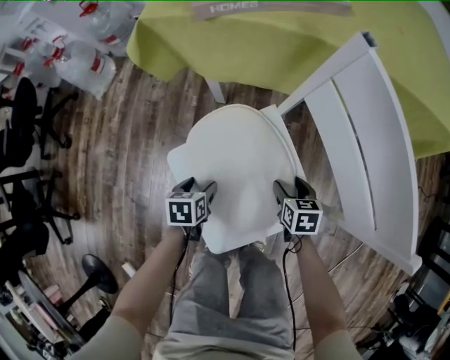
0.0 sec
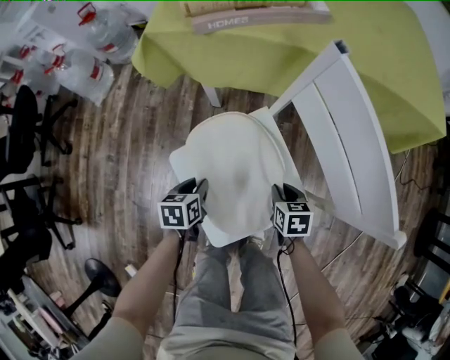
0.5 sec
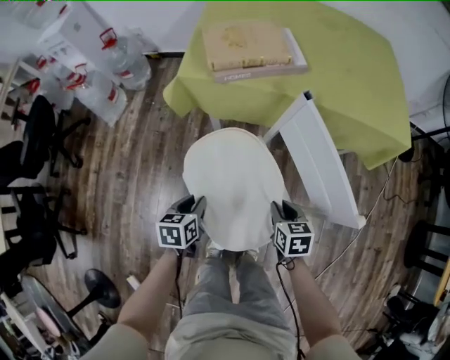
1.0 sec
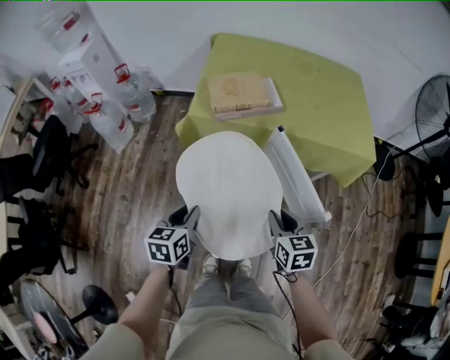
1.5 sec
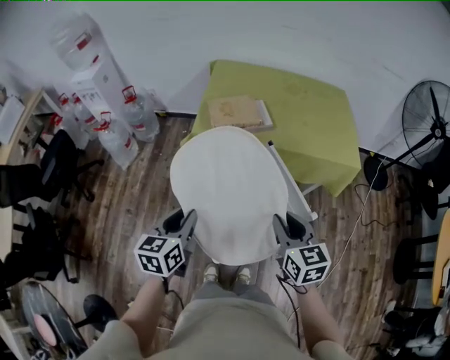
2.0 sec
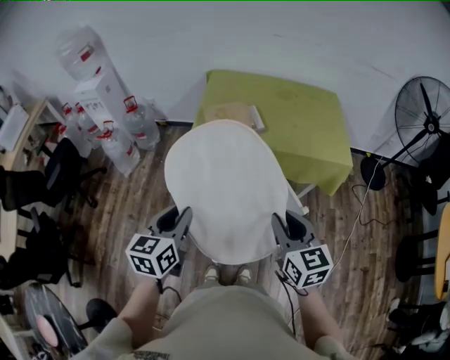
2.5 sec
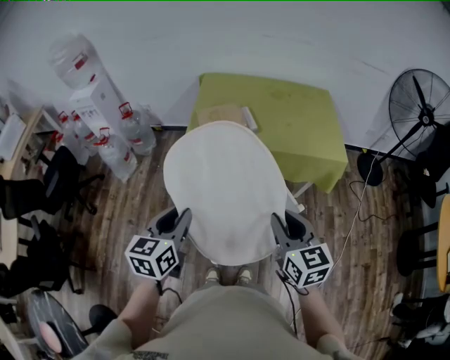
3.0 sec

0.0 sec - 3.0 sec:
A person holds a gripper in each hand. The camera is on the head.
0.0 sec - 1.5 sec: The grippers both shift upward by about 40 cm. The right gripper swivels some 20 degrees, and closes its fingers, while the left gripper turns by about 30 degrees, and closes.
1.5 sec - 3.0 sec: The grippers both shift upward by approximately 25 cm.

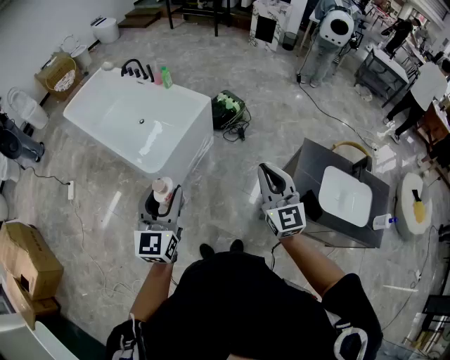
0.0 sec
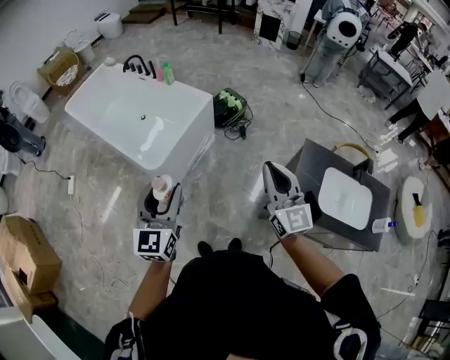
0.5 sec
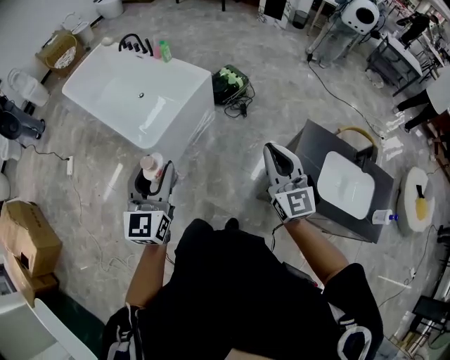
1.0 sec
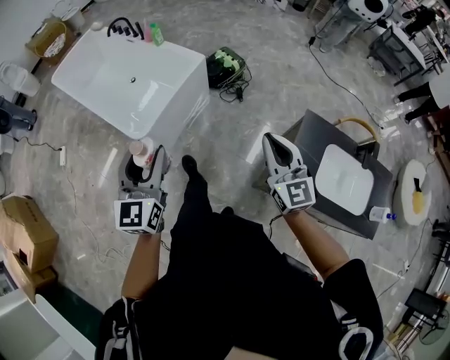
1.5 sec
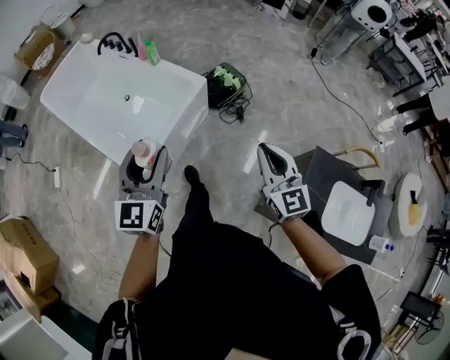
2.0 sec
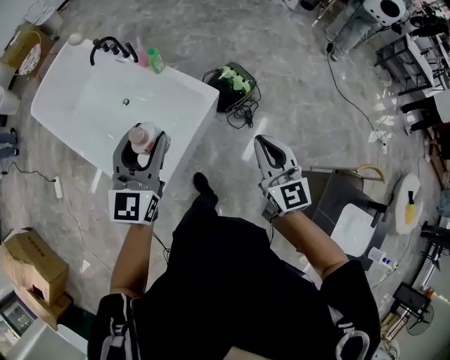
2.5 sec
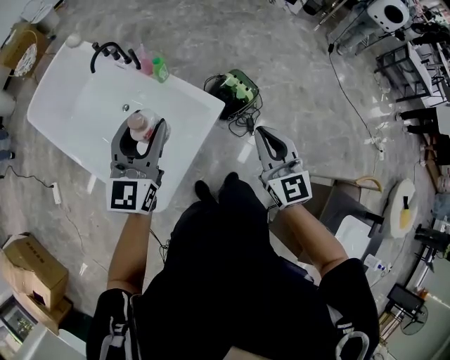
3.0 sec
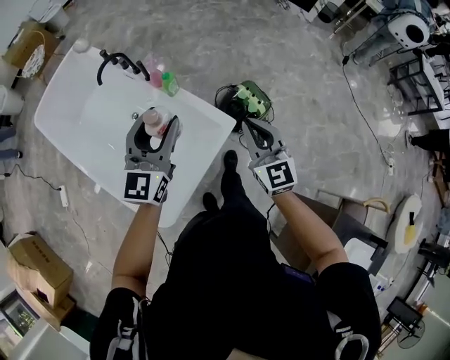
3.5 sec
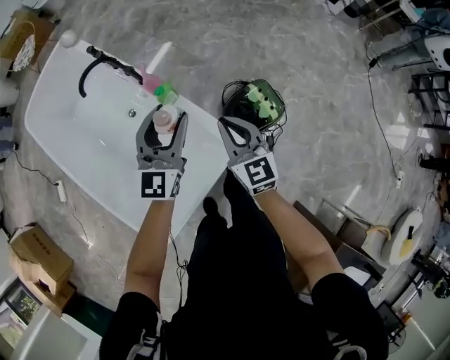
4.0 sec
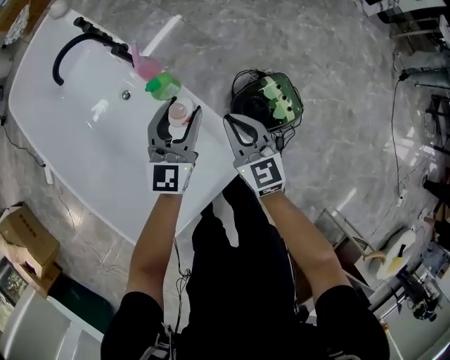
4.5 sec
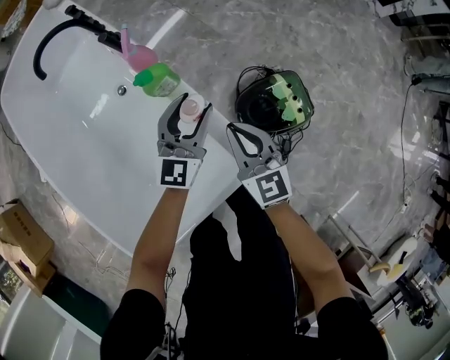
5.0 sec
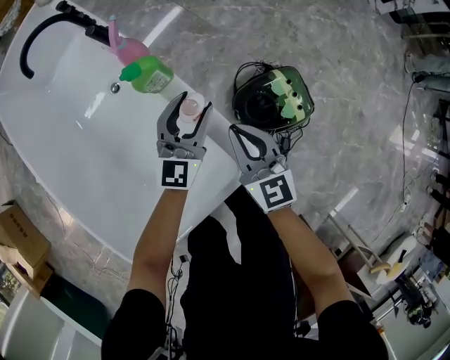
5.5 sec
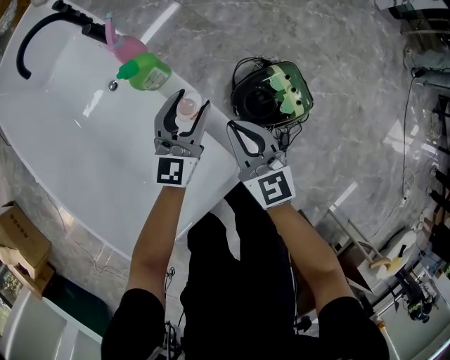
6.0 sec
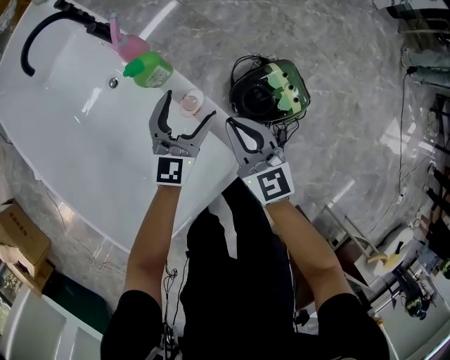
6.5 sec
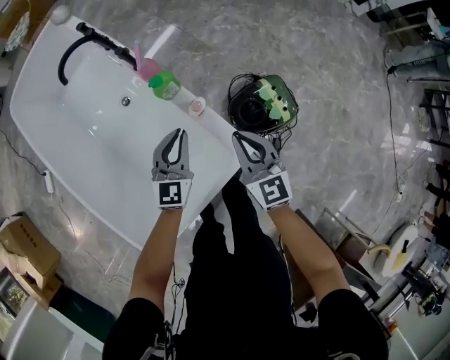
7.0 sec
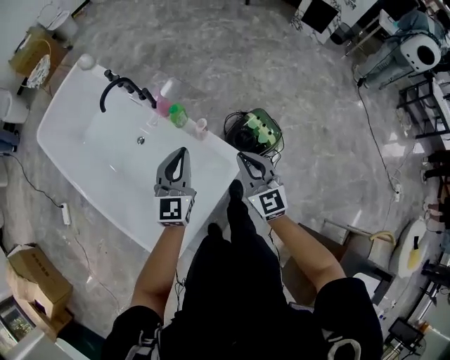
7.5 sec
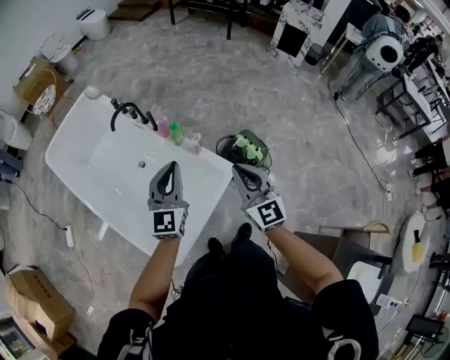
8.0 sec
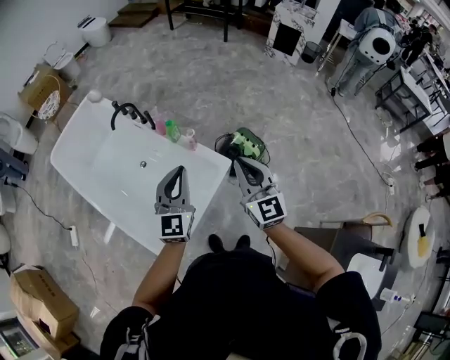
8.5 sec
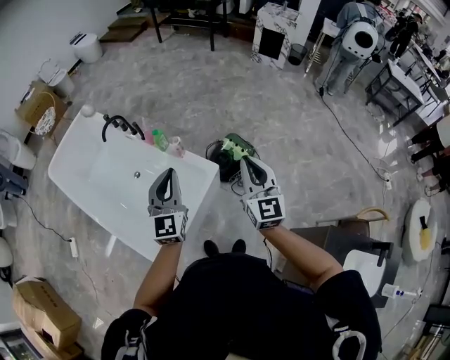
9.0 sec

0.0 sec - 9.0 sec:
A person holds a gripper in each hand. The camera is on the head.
0.0 sec - 2.0 sec: The two grippers go roughly 30 cm forward.
2.0 sec - 4.5 sec: Both grippers are carried forward, some 80 cm. Both grippers move downward, about 35 cm. The right gripper swivels roughly 30 degrees.
4.5 sec - 7.0 sec: Both grippers travel together backward, some 10 cm. The right gripper moves some 10 cm downward and comes back, while the left gripper travels downward and back again, about 15 cm each way, and closes up.
7.0 sec - 9.0 sec: Both grippers travel together upward and backward, some 50 cm. The right gripper changes its angle by approximately 40 degrees, while the left gripper swivels roughly 20 degrees.

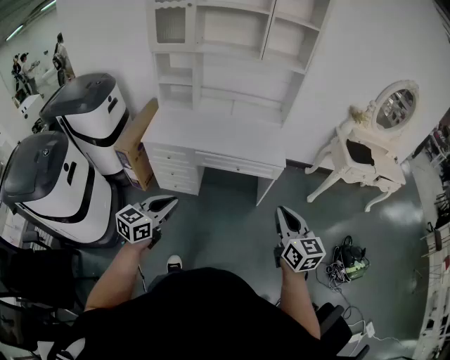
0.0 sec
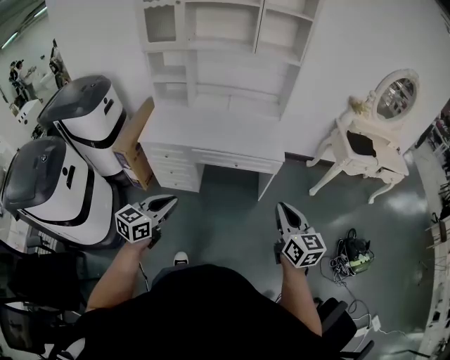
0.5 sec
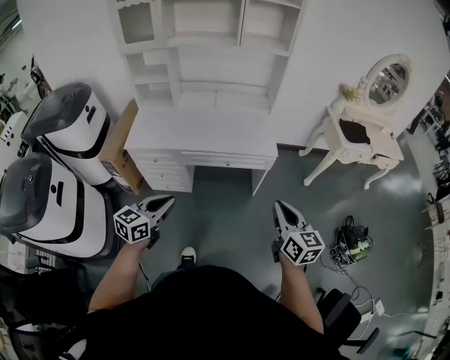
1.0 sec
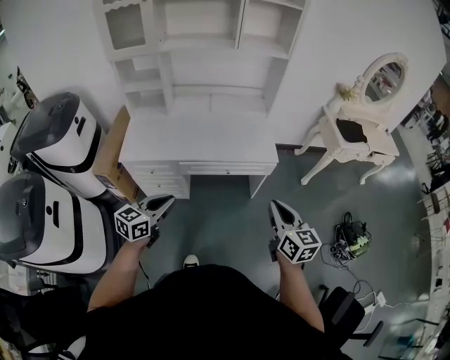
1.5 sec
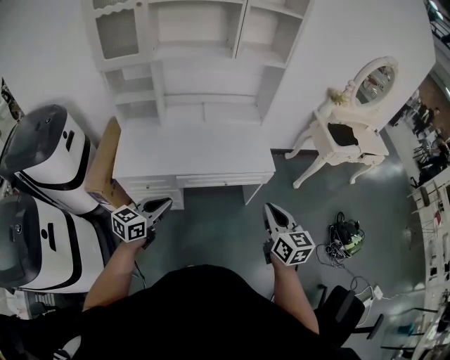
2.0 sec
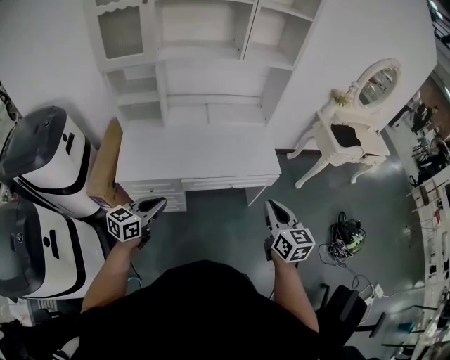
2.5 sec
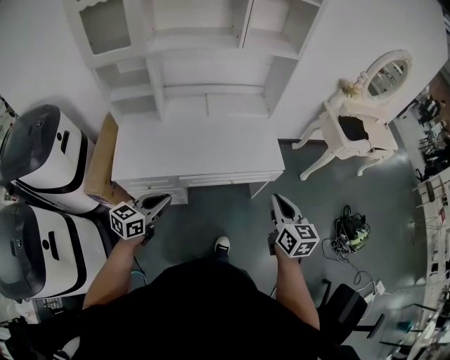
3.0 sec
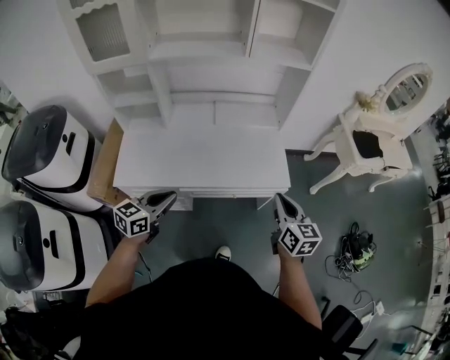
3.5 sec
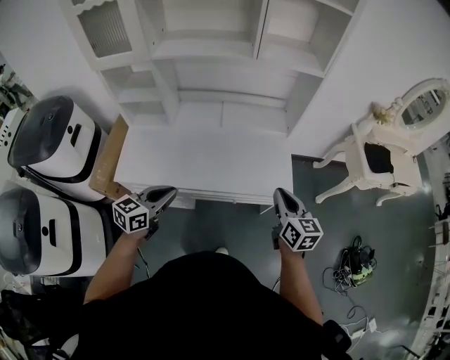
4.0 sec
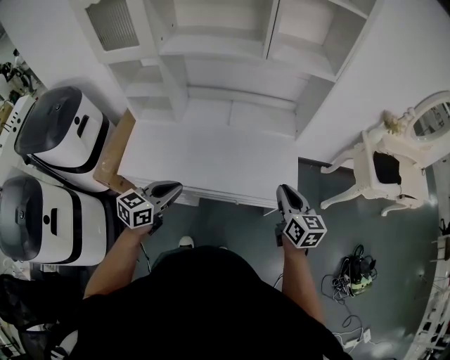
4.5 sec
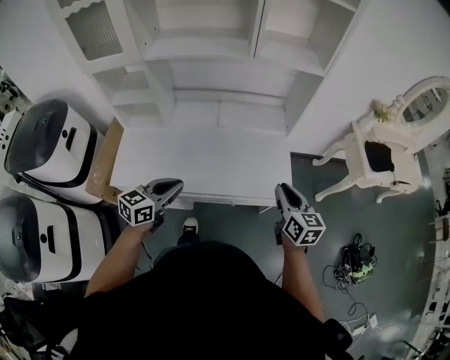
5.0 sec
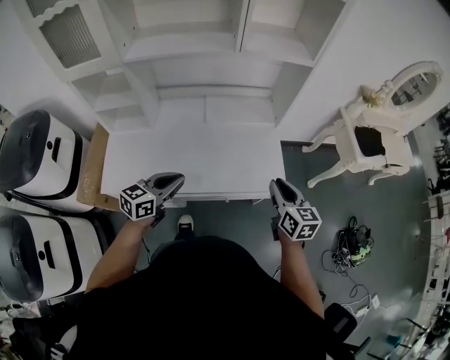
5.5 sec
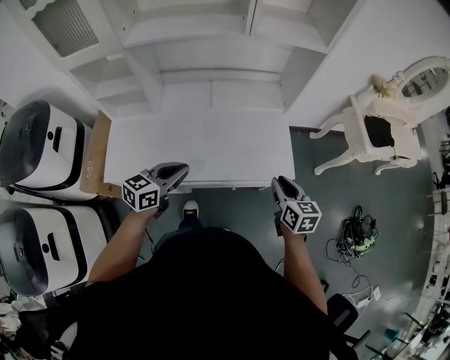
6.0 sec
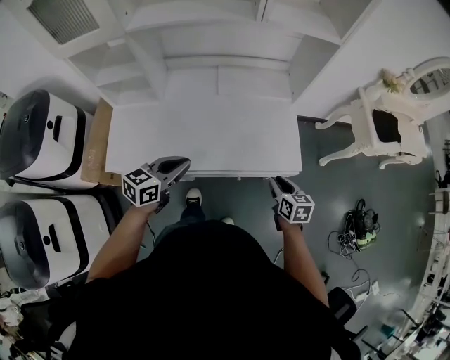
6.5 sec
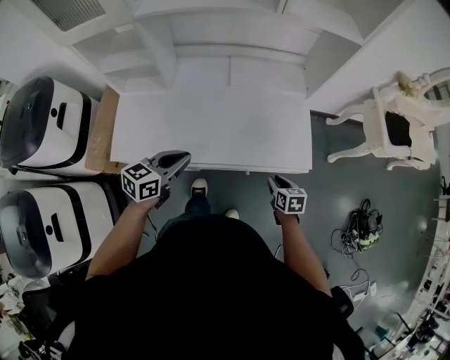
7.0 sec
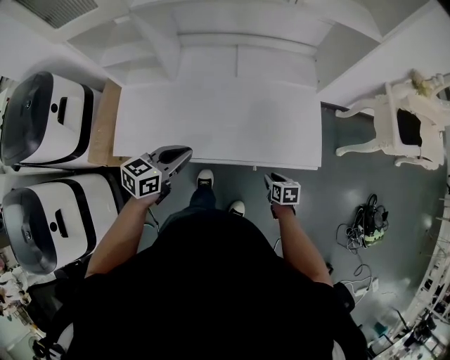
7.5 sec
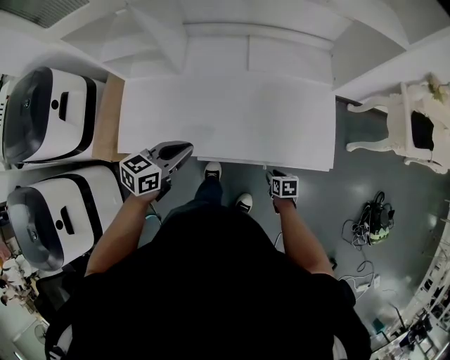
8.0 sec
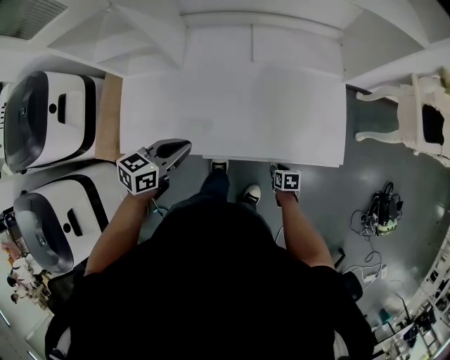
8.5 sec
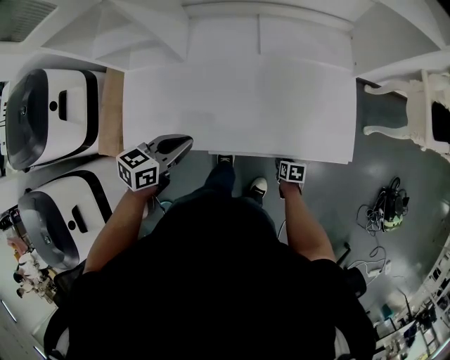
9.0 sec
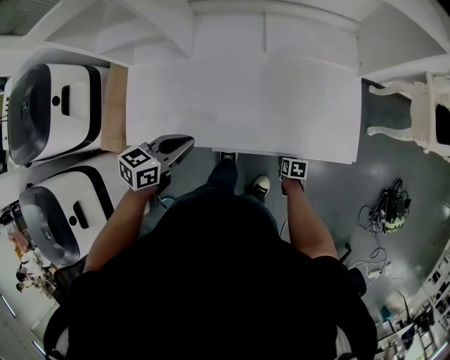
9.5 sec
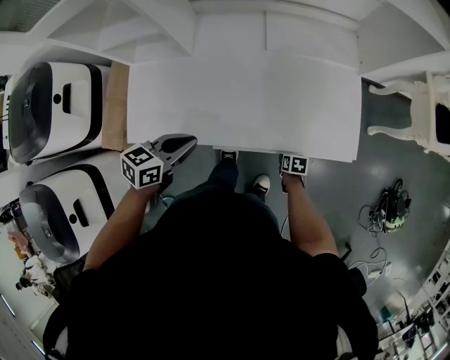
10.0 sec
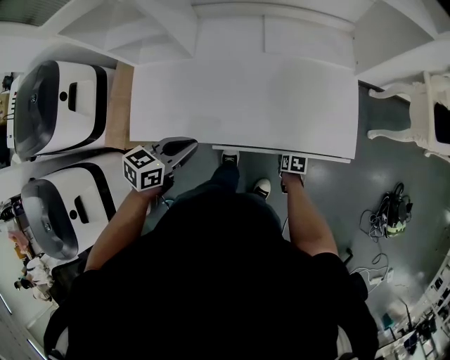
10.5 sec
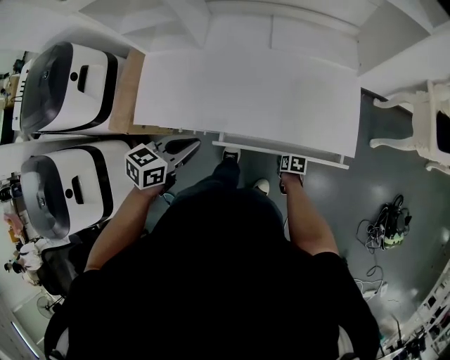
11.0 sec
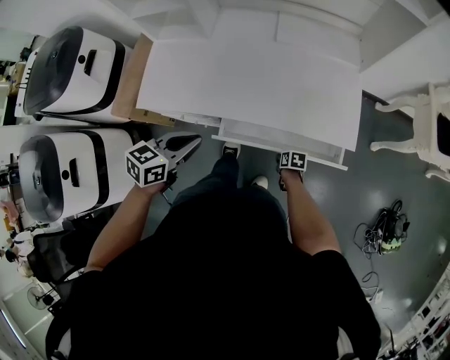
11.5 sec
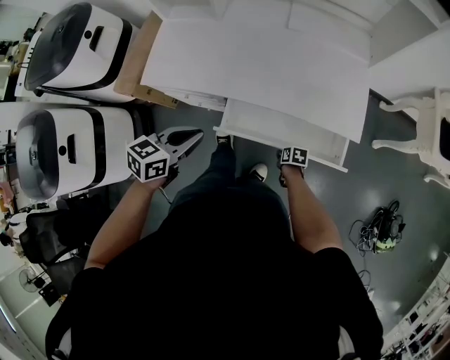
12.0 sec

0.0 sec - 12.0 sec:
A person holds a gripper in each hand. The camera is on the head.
0.0 sec - 2.0 sec: The grippers both shift forward and to the left by roughly 20 cm.
2.0 sec - 4.0 sec: The two grippers go about 25 cm forward.
4.0 sec - 6.0 sec: The left gripper is displaced forward by about 10 cm. Meanwhile the right gripper moves downward, about 10 cm.
6.0 sec - 8.0 sec: The right gripper goes roughly 35 cm downward, and tips its fingers downward by some 30 degrees. Meanwhile the left gripper travels to the left and downward by some 10 cm.
8.0 sec - 10.0 sec: The left gripper ends up some 5 cm from where it was. Meanwhile the right gripper is displaced downward by some 10 cm.
10.0 sec - 12.0 sec: The left gripper moves backward, approximately 20 cm; the right gripper travels backward by roughly 10 cm.

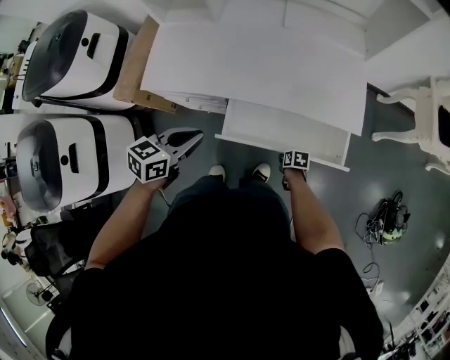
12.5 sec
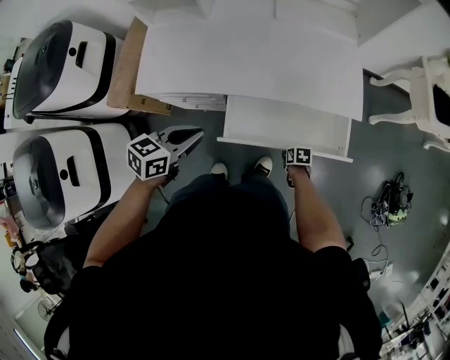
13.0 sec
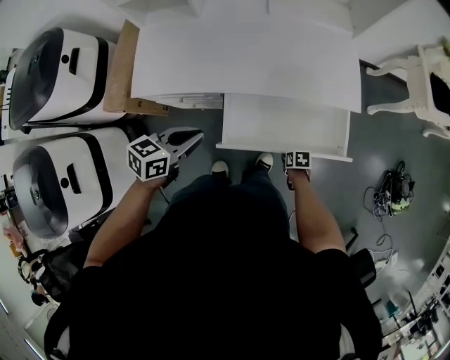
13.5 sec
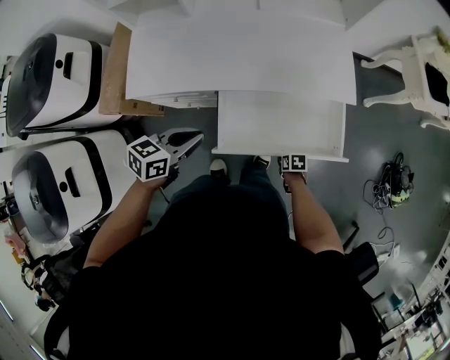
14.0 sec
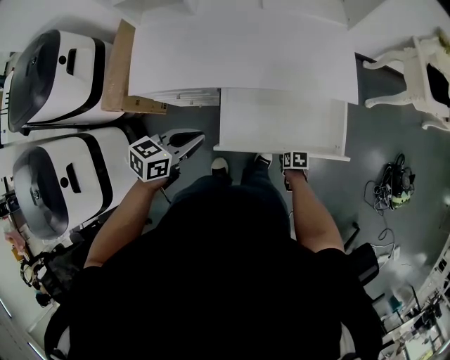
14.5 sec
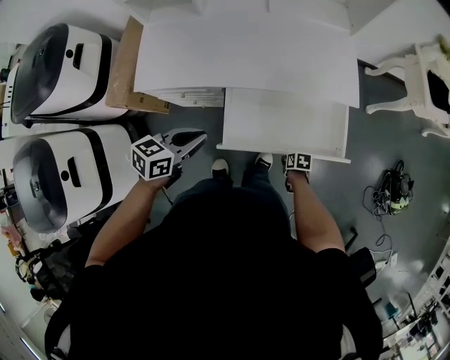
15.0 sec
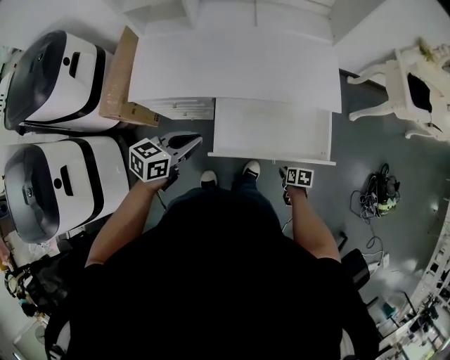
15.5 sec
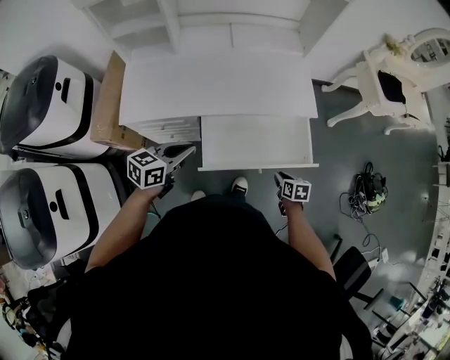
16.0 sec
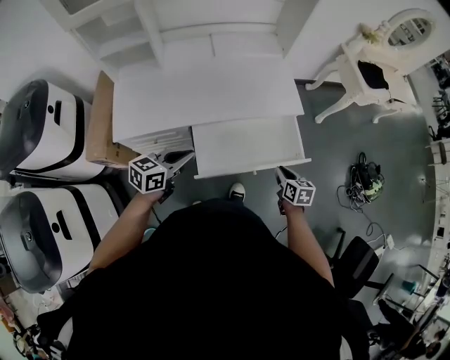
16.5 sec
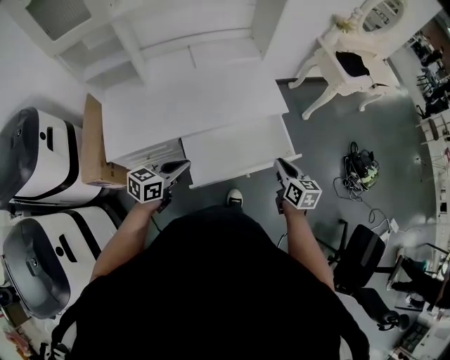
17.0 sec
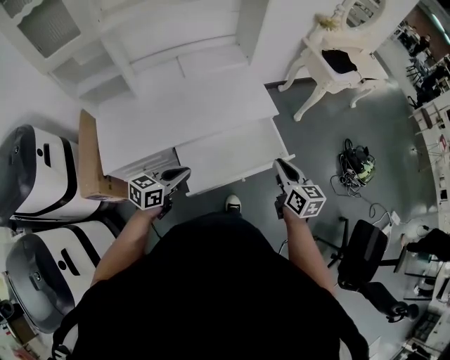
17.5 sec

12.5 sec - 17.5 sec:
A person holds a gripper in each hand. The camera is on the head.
12.5 sec - 15.0 sec: The right gripper moves some 10 cm.
15.0 sec - 17.5 sec: The left gripper moves roughly 10 cm, and swivels about 20 degrees. The right gripper shifts about 40 cm upward, and tilts its fingers roughly 50 degrees upward.
